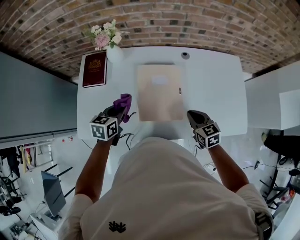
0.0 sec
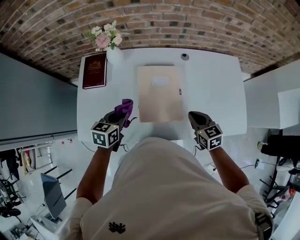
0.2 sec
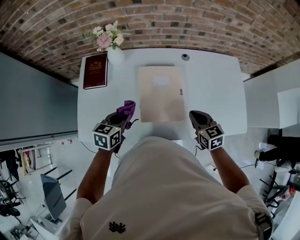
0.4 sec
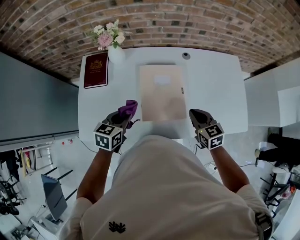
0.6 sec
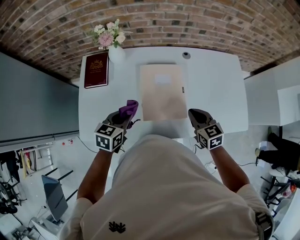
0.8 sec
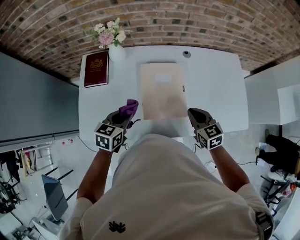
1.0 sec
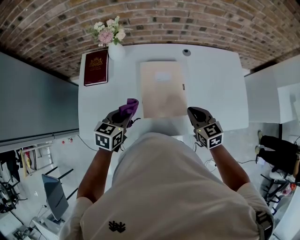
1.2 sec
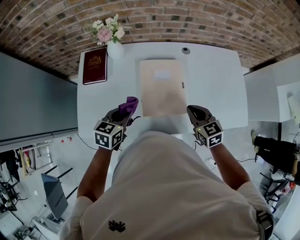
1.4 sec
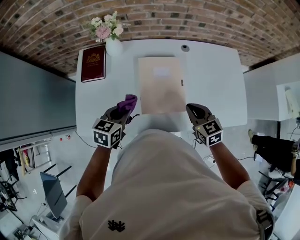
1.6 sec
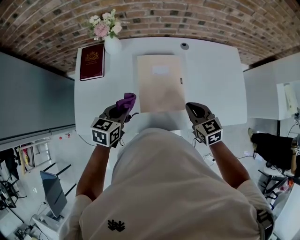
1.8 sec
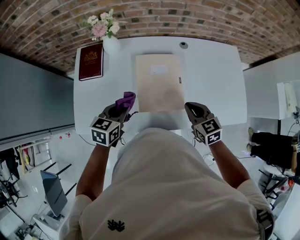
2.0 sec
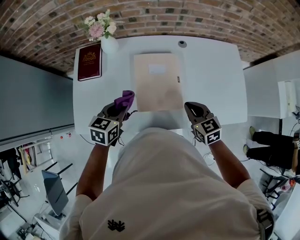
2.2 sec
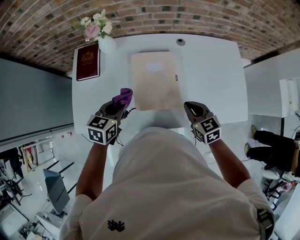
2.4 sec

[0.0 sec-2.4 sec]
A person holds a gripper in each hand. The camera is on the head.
0.0 sec to 1.2 sec: The right gripper ends up approximately 5 cm from where it was.
1.2 sec to 2.4 sec: The grippers make only small movements.
